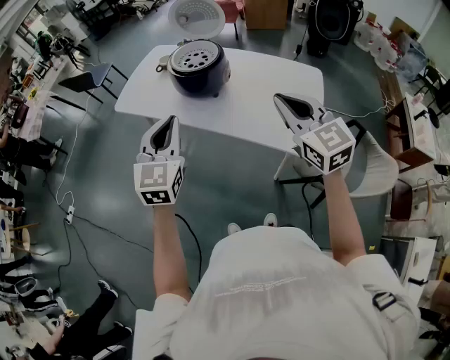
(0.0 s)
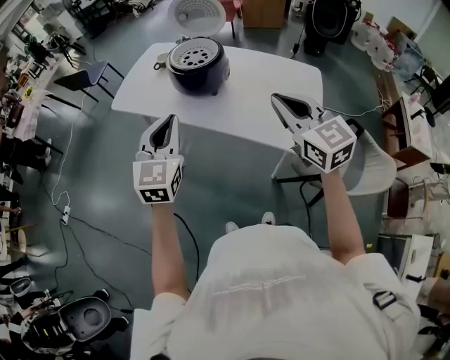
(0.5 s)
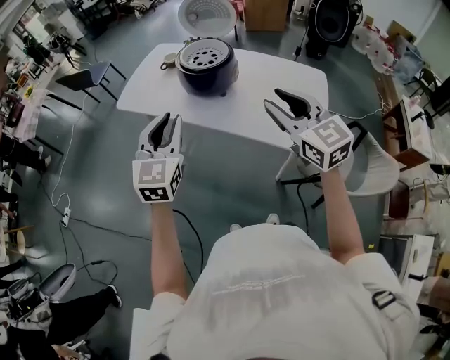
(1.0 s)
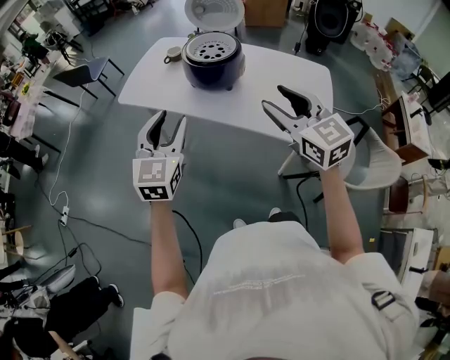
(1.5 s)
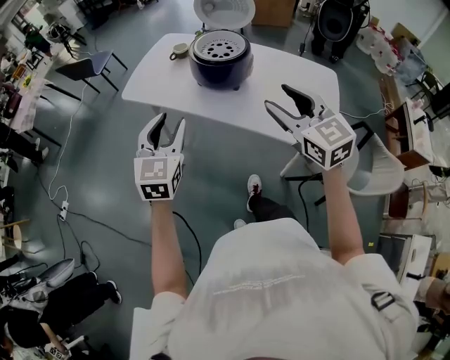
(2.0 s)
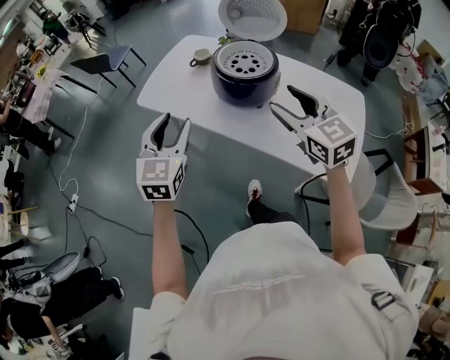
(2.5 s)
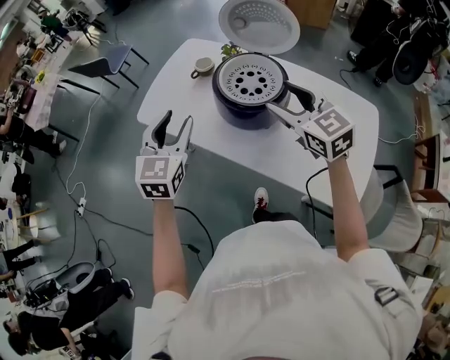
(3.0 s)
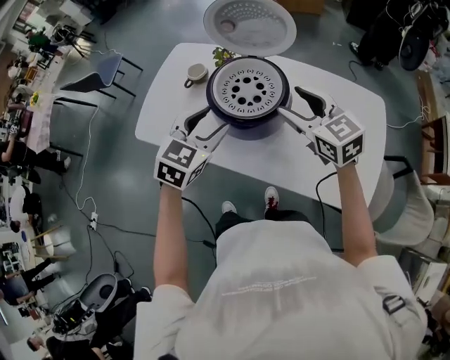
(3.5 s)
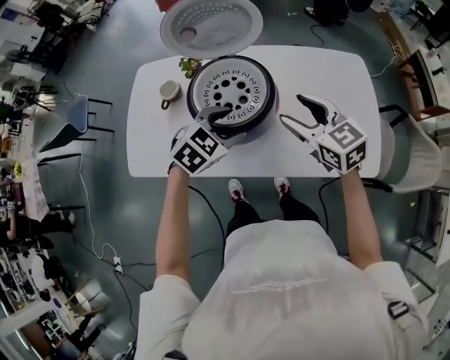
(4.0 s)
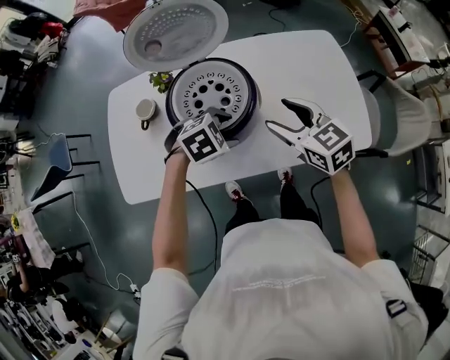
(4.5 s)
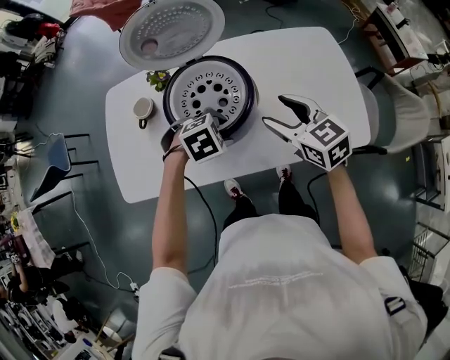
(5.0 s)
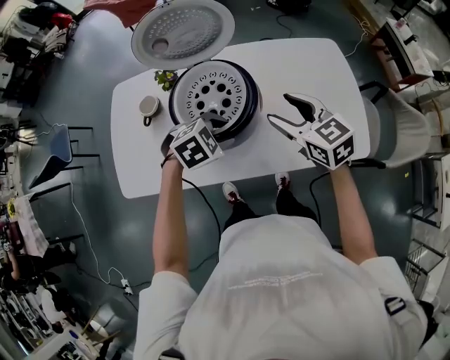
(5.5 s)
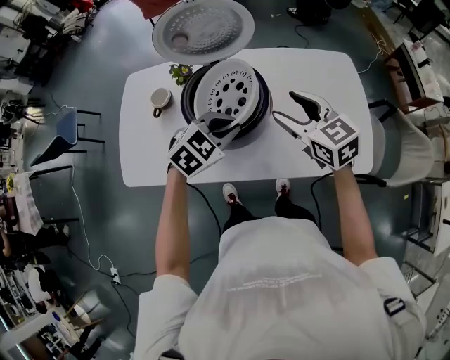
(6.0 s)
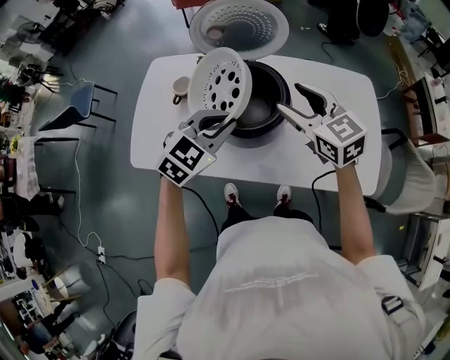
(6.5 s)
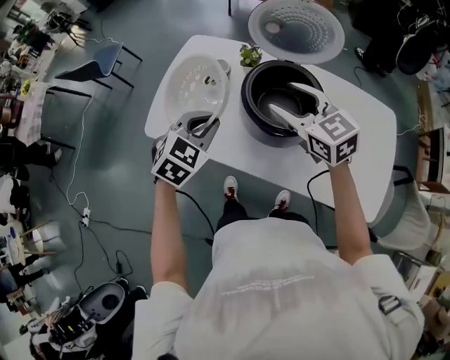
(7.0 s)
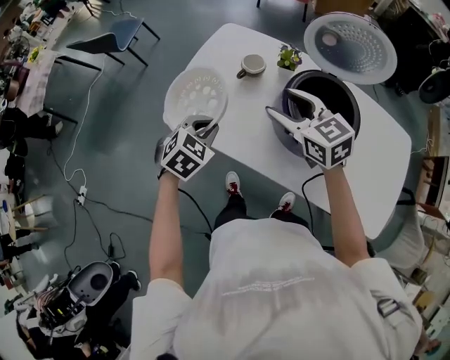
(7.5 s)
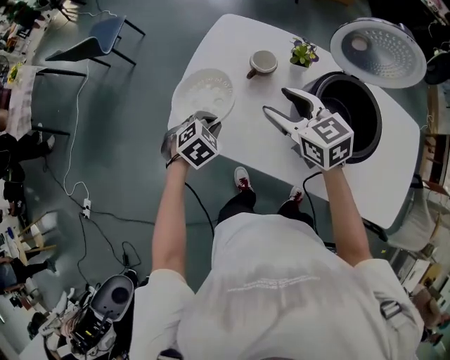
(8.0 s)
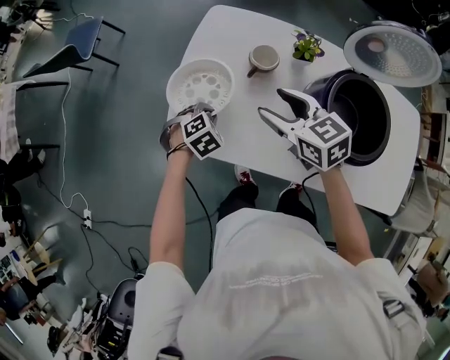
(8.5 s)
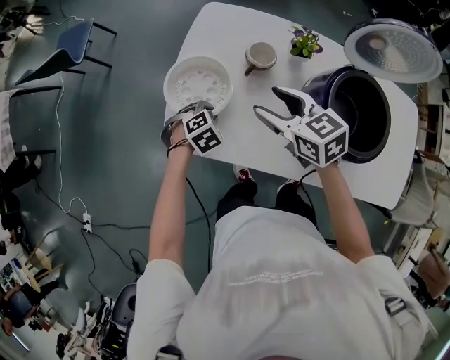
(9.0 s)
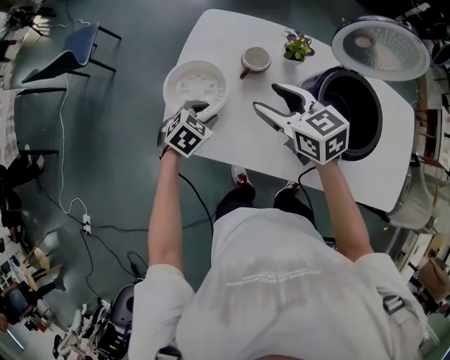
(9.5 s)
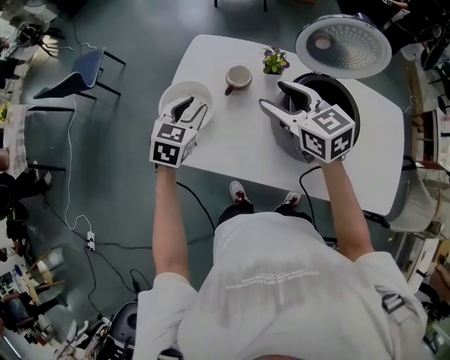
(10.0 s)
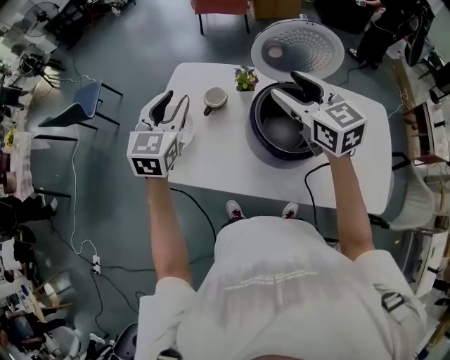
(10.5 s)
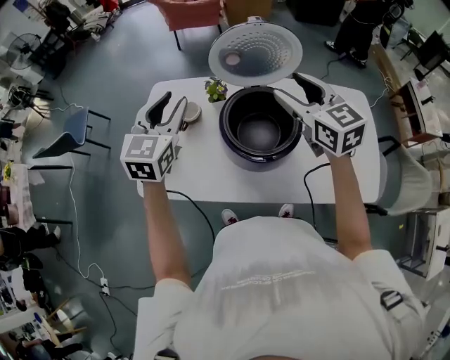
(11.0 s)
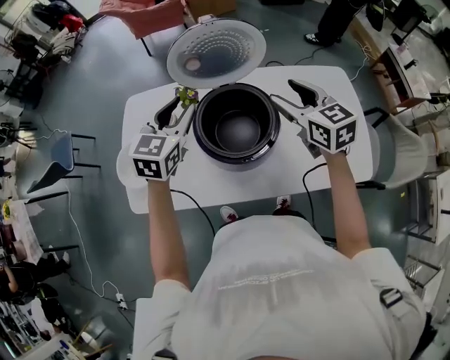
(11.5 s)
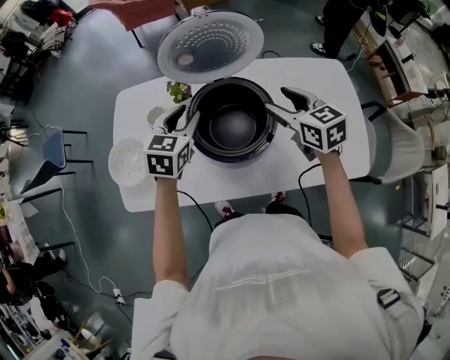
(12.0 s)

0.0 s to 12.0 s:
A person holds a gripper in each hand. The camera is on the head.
0.0 to 2.0 s: The grippers both shift to the left by approximately 10 cm. The left gripper opens up. Meanwhile the right gripper opens.
2.0 to 4.0 s: The left gripper moves about 35 cm, and points its fingers some 30 degrees further downward; the right gripper changes place by about 30 cm, and changes its angle by roughly 20 degrees.
4.0 to 6.0 s: The left gripper closes.
6.0 to 8.0 s: The right gripper shifts by about 35 cm, and turns by about 20 degrees, while the left gripper changes place by about 40 cm, and rotates about 40 degrees.
8.0 to 10.0 s: The left gripper shifts about 15 cm upward and forward, rotates roughly 30 degrees, and opens; the right gripper goes approximately 5 cm upward.
10.0 to 12.0 s: Both grippers move to the right, approximately 30 cm. The right gripper rotates some 20 degrees.

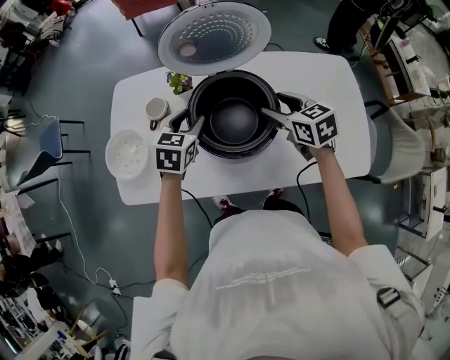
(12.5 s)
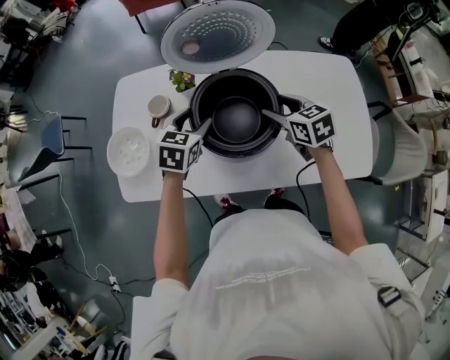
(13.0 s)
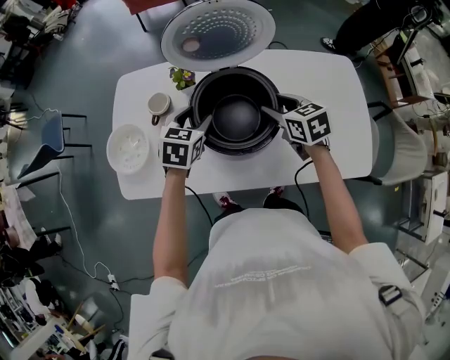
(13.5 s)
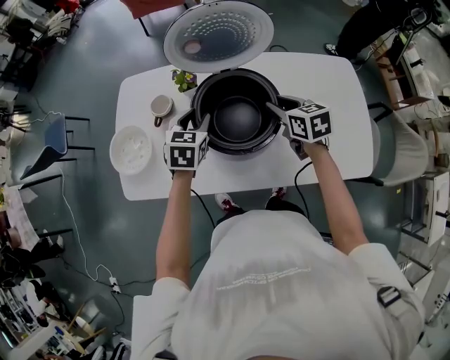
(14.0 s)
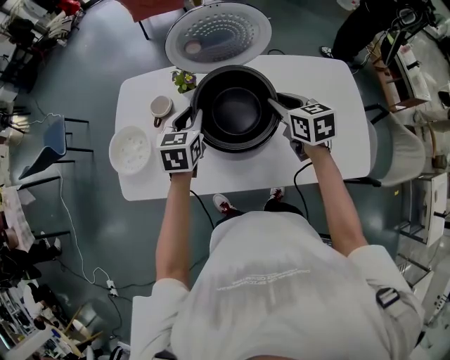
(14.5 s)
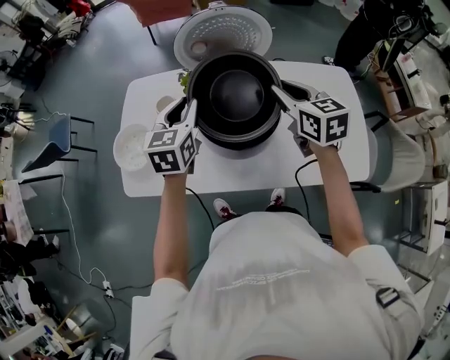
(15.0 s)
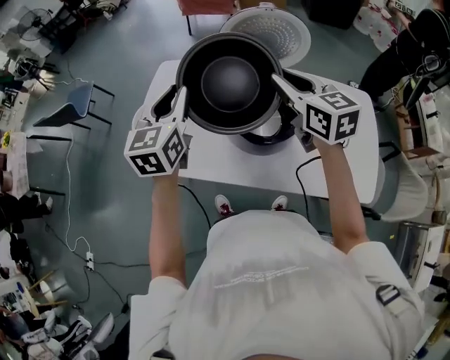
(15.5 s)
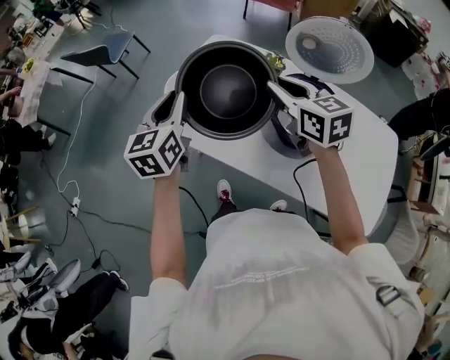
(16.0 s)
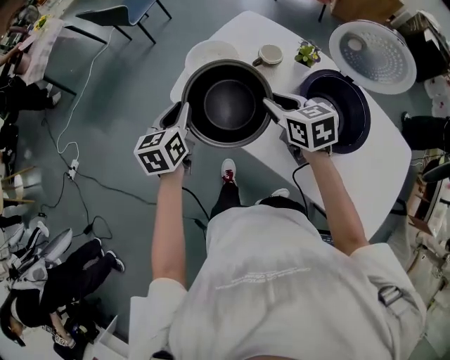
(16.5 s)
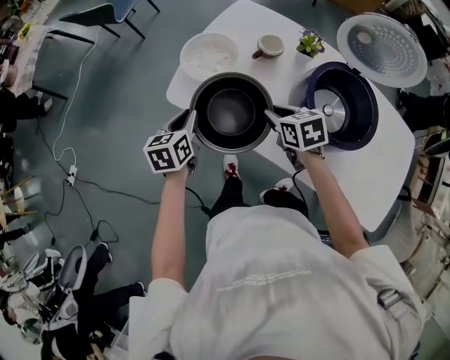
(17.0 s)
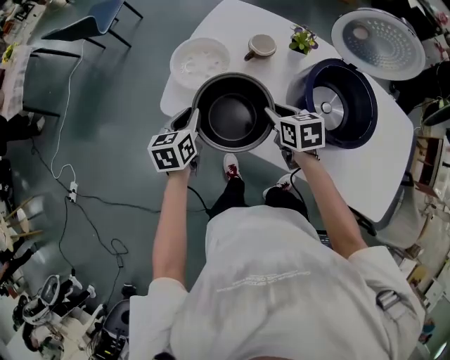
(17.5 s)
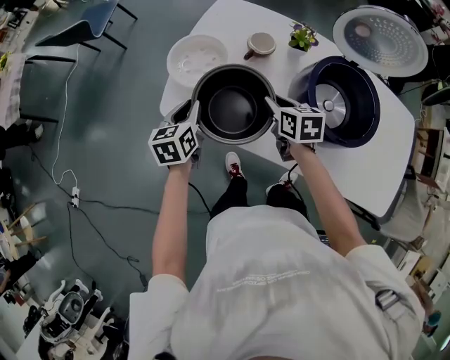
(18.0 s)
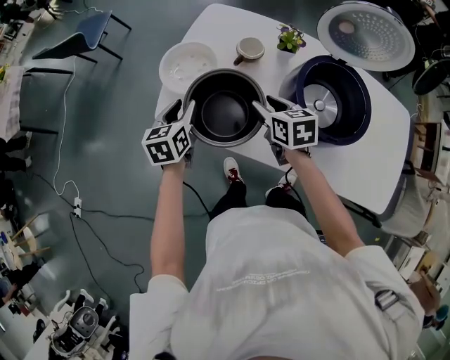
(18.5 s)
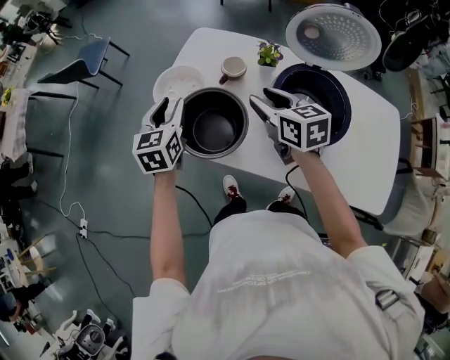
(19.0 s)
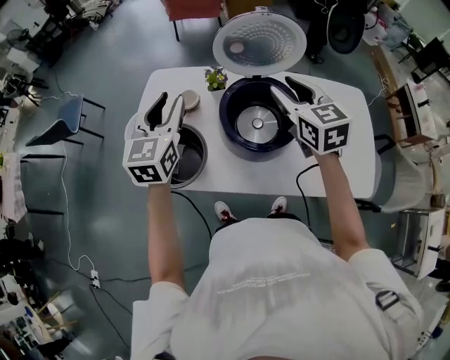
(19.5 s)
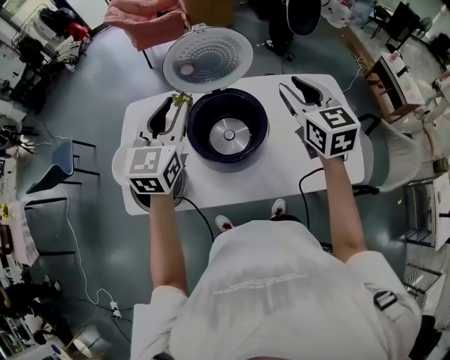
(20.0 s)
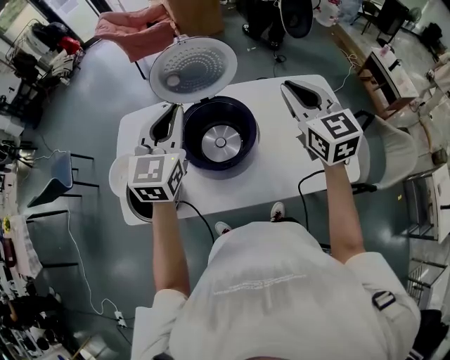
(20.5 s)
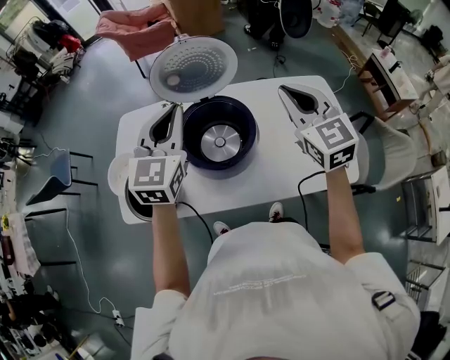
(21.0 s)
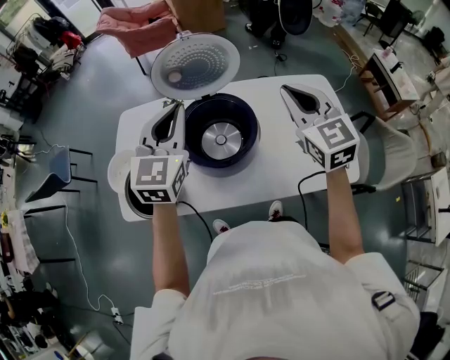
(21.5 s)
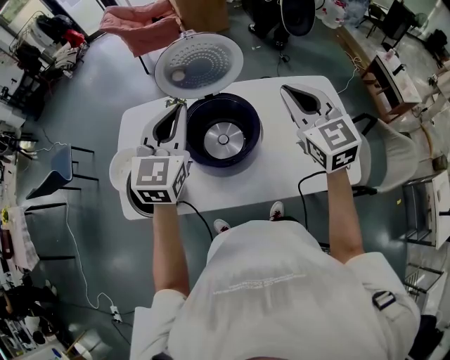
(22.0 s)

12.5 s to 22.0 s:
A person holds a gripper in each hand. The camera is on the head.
12.5 to 14.5 s: The right gripper closes its fingers.
14.5 to 16.5 s: The left gripper moves about 15 cm upward and comes back, and turns by some 50 degrees. The right gripper travels upward and back again, roughly 15 cm each way, and swivels some 40 degrees.
16.5 to 18.0 s: The right gripper travels downward by approximately 10 cm, and turns by roughly 30 degrees. Meanwhile the left gripper is displaced downward and forward by some 10 cm.
18.0 to 20.0 s: The right gripper changes place by approximately 50 cm, and swivels some 50 degrees. Meanwhile the left gripper ends up roughly 40 cm from where it was, and turns by some 50 degrees.
20.0 to 22.0 s: The left gripper closes up; the right gripper closes its fingers.

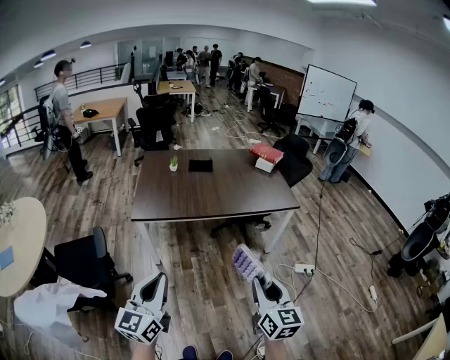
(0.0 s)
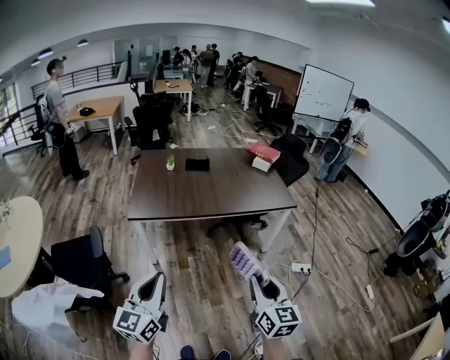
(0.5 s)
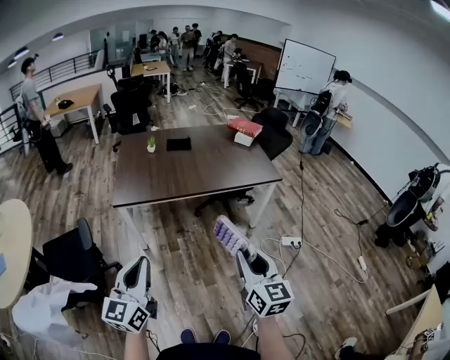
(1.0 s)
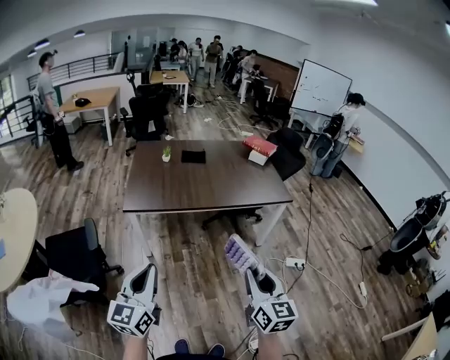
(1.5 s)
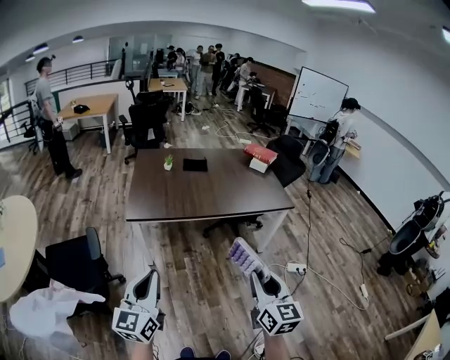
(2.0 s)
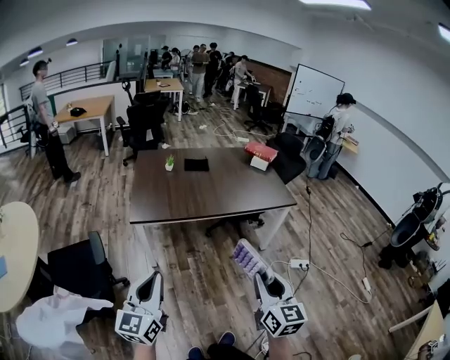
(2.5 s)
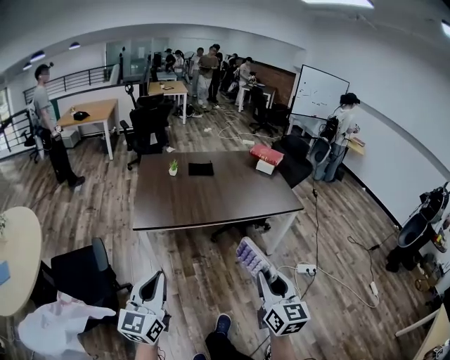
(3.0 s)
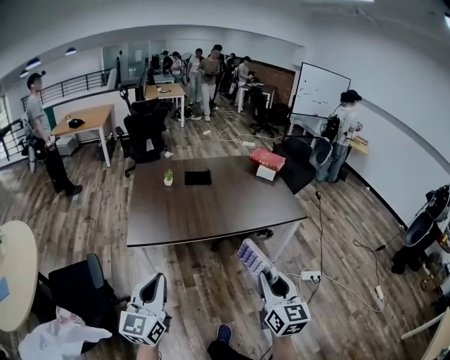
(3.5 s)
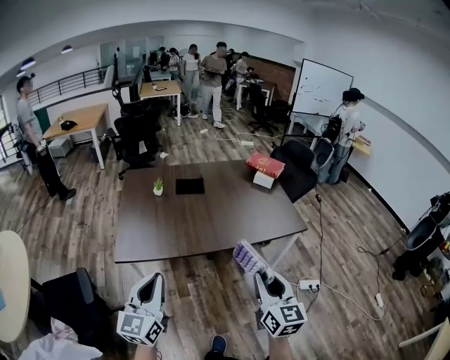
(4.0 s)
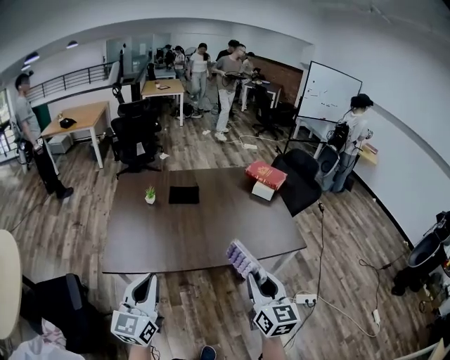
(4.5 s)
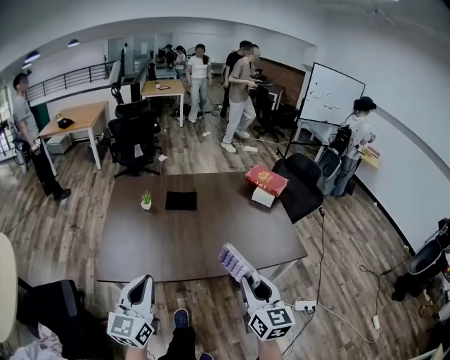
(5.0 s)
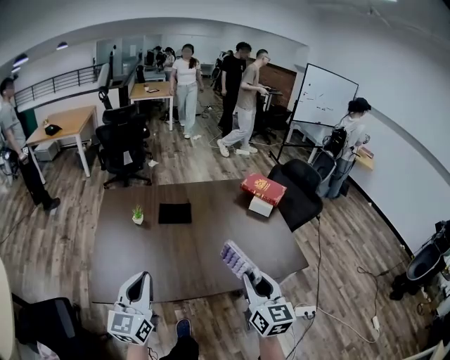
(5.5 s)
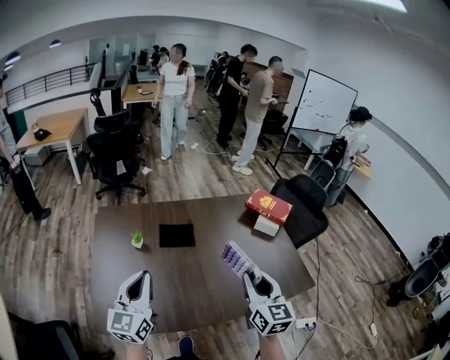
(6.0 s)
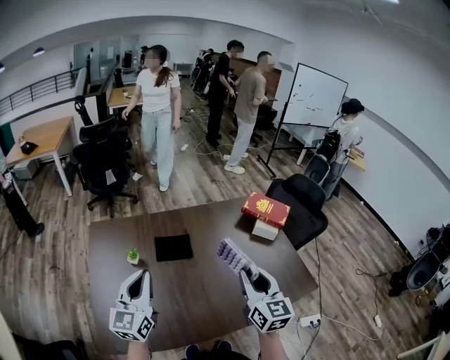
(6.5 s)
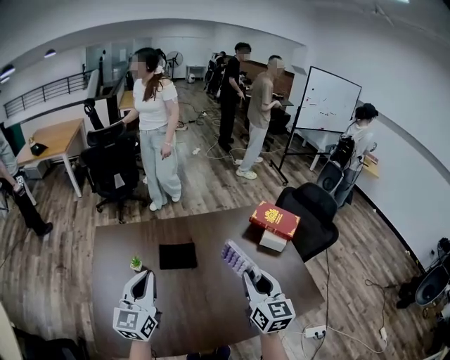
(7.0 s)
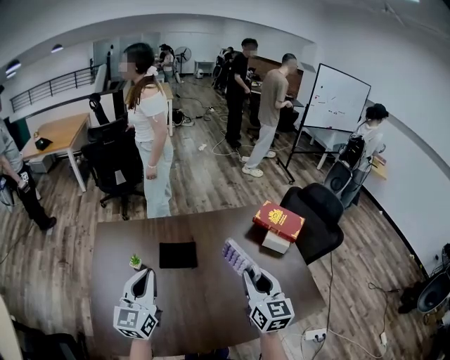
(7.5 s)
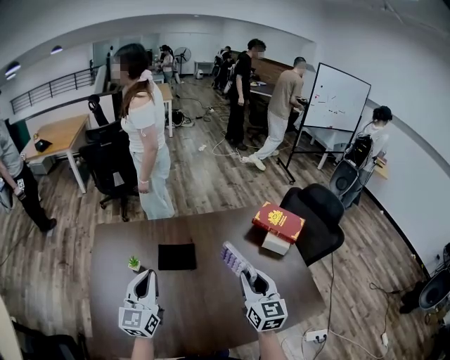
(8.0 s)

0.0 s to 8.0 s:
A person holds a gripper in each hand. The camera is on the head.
0.0 to 2.0 s: The right gripper ends up roughly 5 cm from where it was; the left gripper shifts some 5 cm to the left.
2.0 to 4.0 s: The grippers both shift forward by some 30 cm.
4.0 to 6.0 s: Both grippers are carried forward, some 40 cm.
6.0 to 8.0 s: Both grippers move forward, approximately 20 cm.
